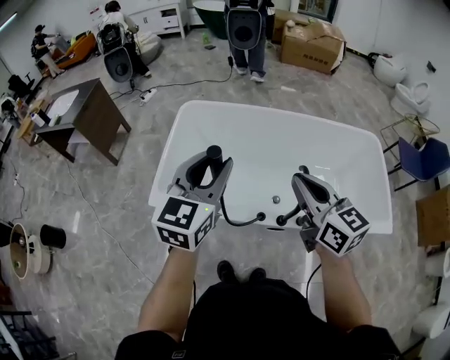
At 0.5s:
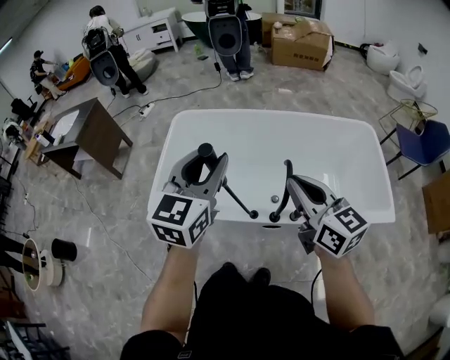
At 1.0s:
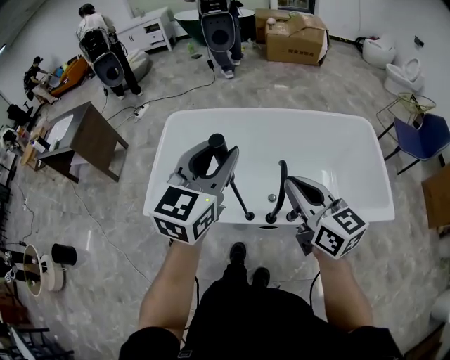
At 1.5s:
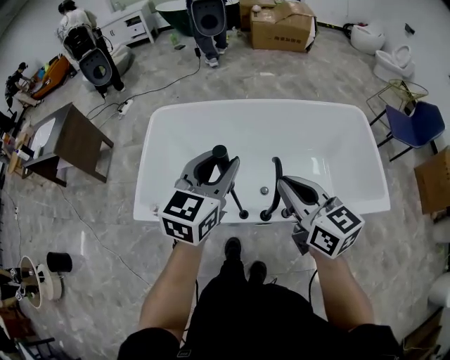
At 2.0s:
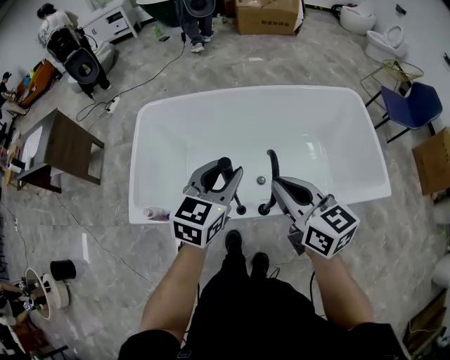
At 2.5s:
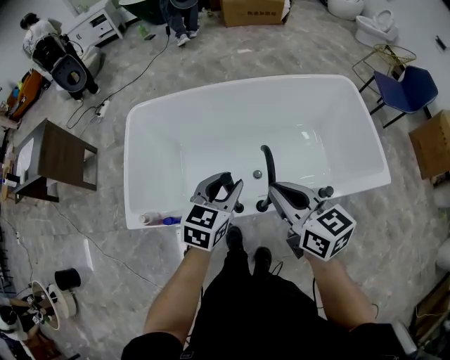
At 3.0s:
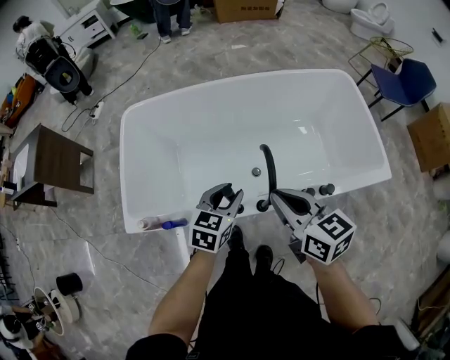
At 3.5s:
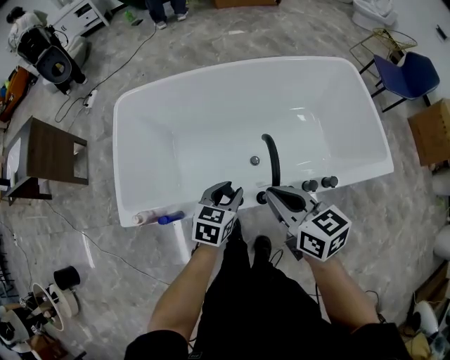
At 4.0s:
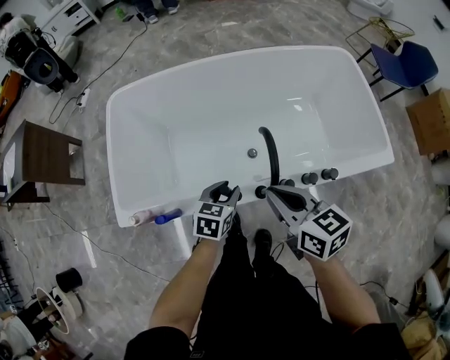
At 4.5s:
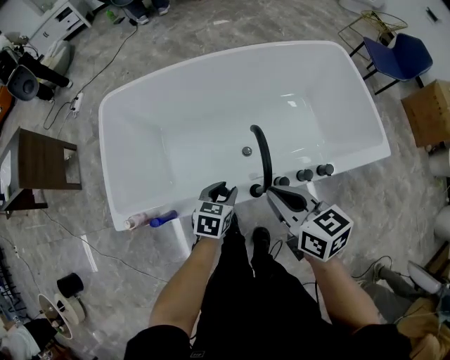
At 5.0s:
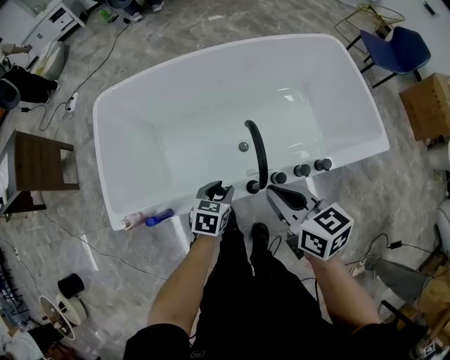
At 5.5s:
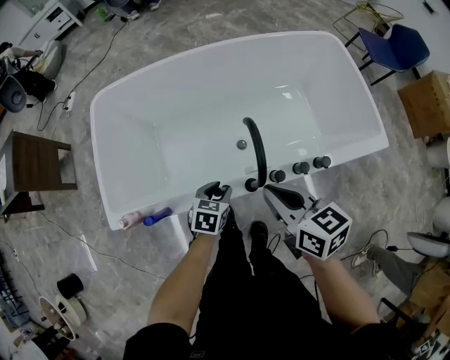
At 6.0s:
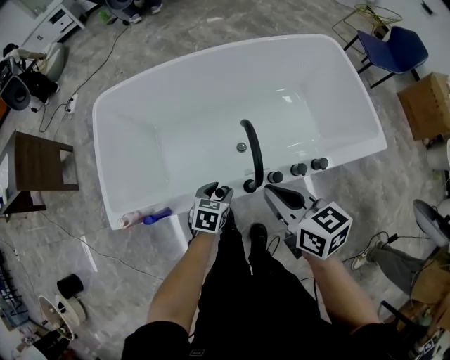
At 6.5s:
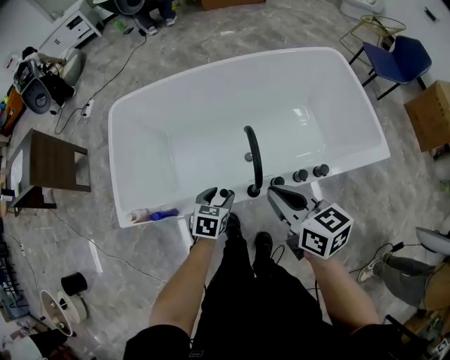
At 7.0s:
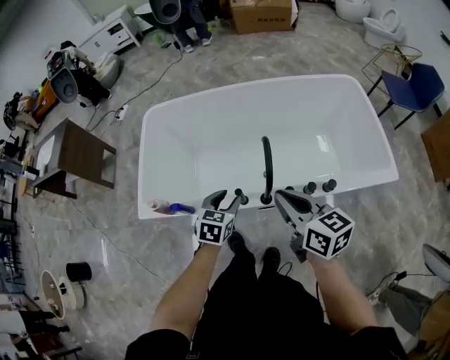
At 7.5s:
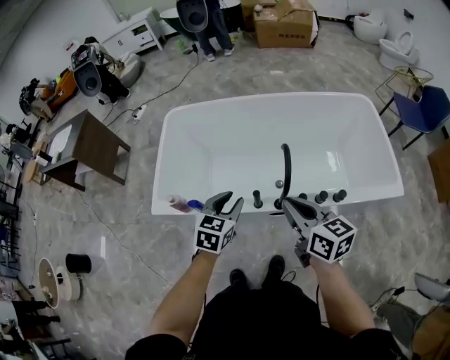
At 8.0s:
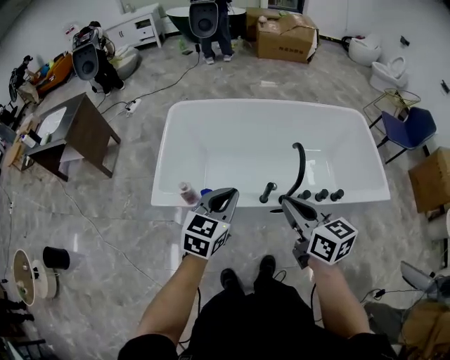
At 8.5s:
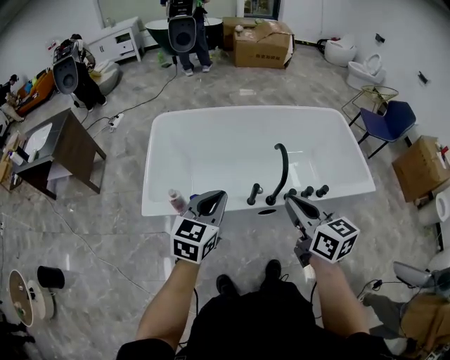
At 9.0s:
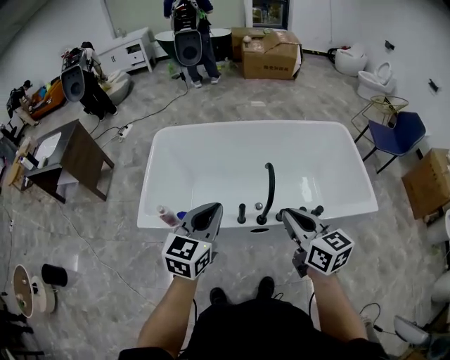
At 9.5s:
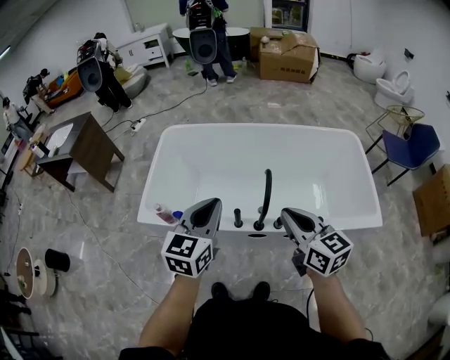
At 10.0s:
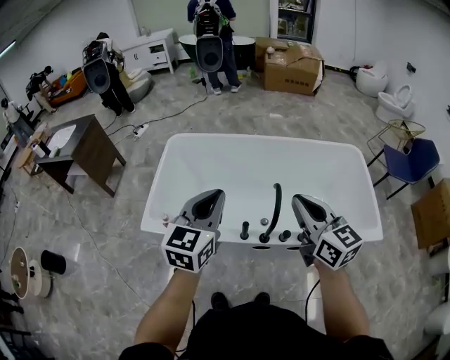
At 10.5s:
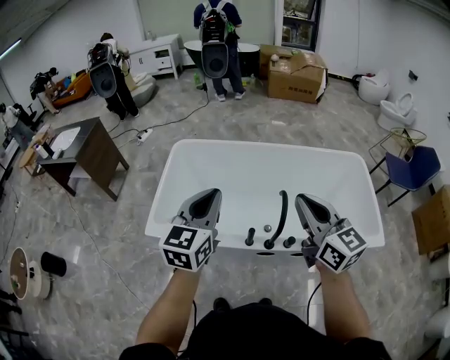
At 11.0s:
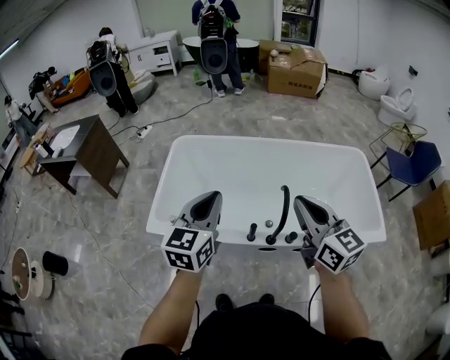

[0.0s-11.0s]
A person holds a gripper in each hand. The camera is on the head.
0.0s to 2.0s: The left gripper heads to the right and downward, covering some 20 cm, and rotates roughly 20 degrees. Meanwhile the right gripper travels to the right and downward by approximately 10 cm.
2.0s to 3.5s: The right gripper travels downward by about 10 cm; the left gripper travels downward by approximately 20 cm, and turns by approximately 20 degrees.
3.5s to 5.5s: The left gripper is displaced downward by roughly 10 cm.
5.5s to 7.5s: The right gripper moves upward and backward, about 10 cm; the left gripper travels upward by roughly 20 cm, swivels some 20 degrees, and opens, then closes once more.
7.5s to 9.0s: The right gripper travels upward by approximately 5 cm, and goes to the left and returns, about 10 cm each way, while the left gripper moves upward, some 15 cm, and closes its fingers.
9.0s to 11.0s: Both grippers travel together forward and upward, some 10 cm.

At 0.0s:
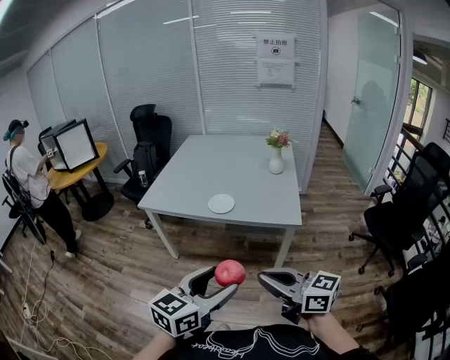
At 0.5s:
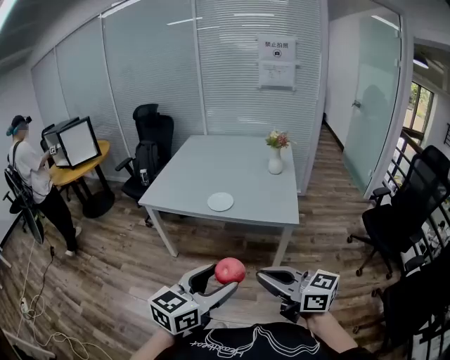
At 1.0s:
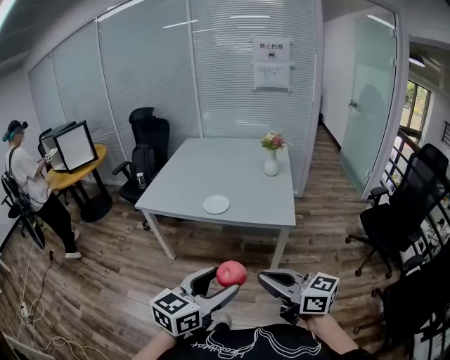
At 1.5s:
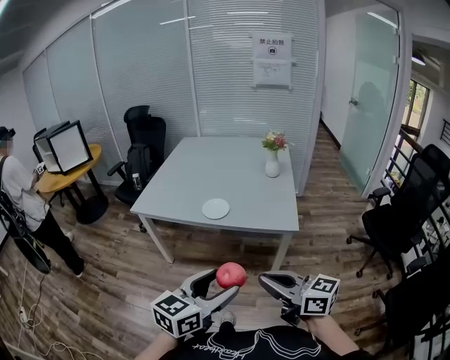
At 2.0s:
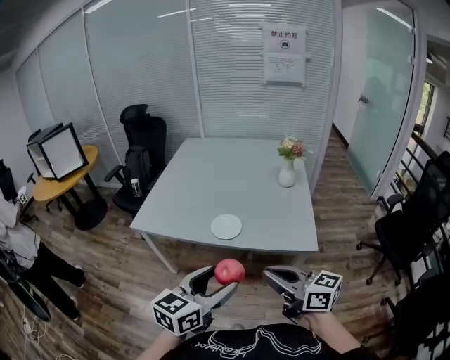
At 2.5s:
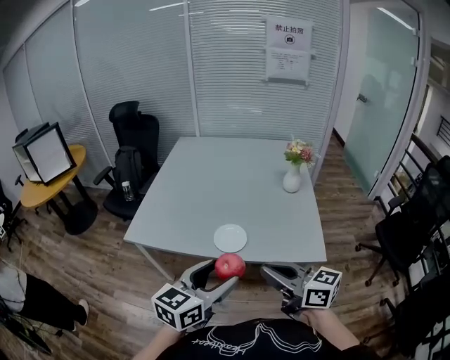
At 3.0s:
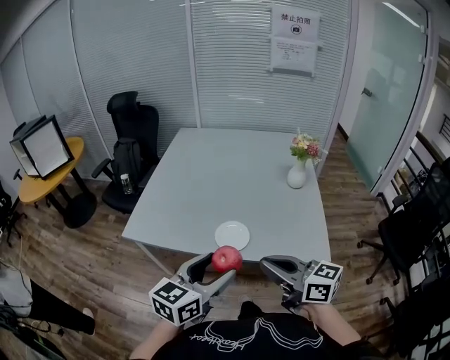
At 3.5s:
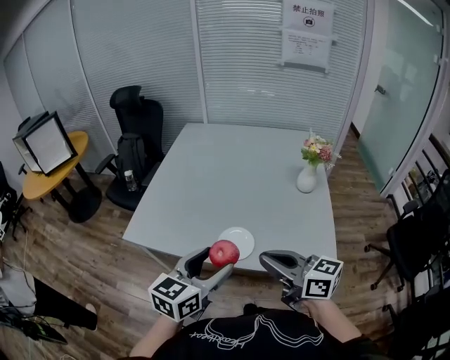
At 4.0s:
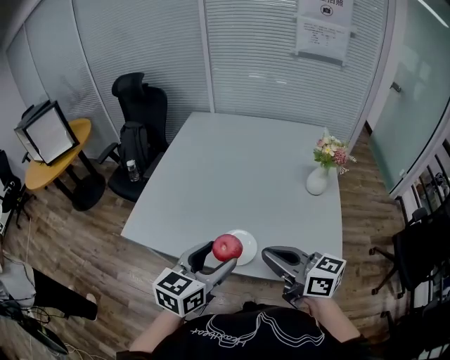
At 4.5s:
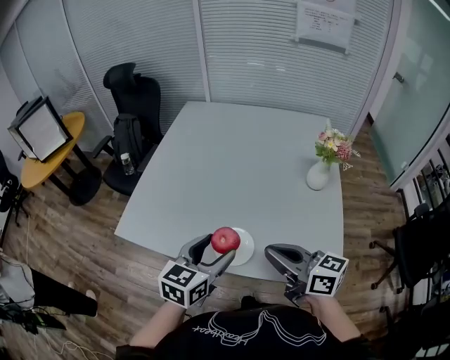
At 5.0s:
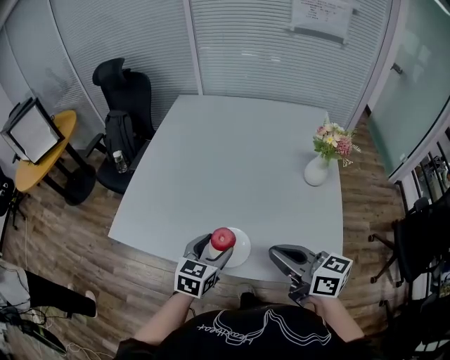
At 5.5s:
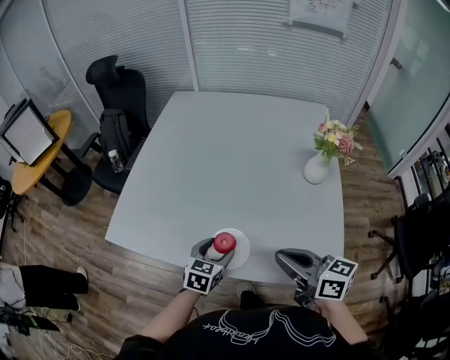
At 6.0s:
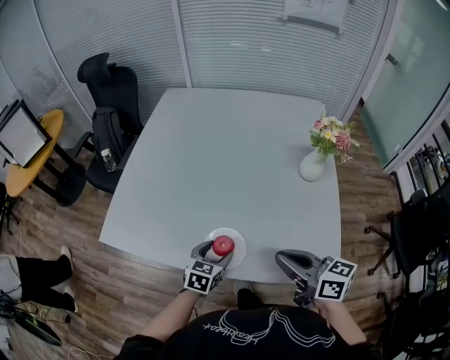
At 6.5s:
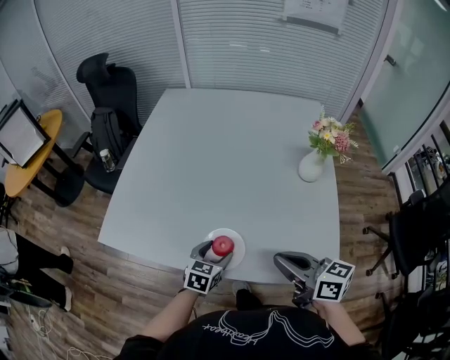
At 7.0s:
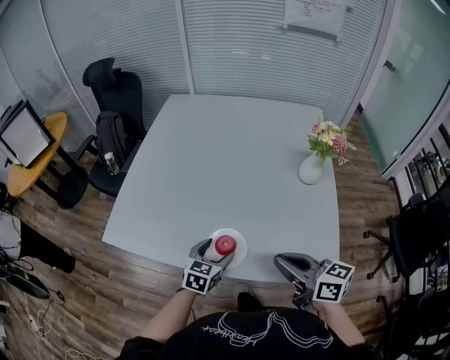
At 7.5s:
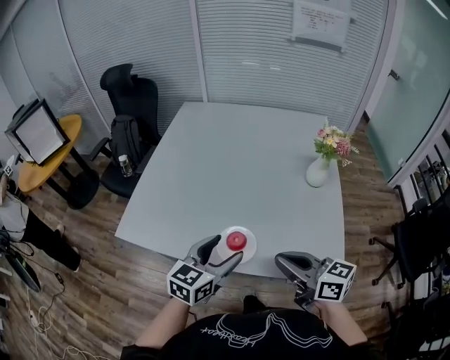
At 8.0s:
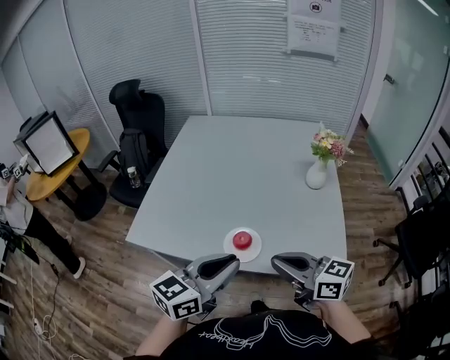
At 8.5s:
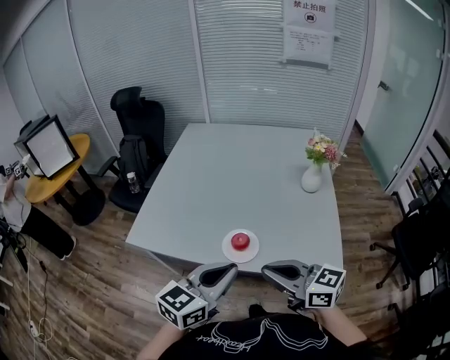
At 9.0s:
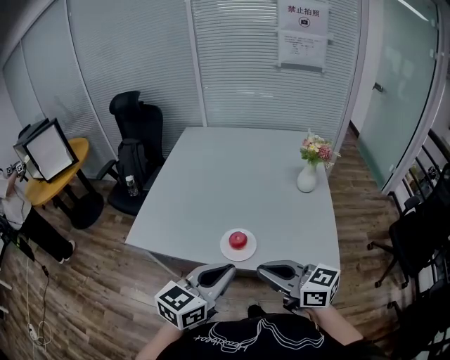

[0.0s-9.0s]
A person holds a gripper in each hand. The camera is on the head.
0.0s to 2.0s: Both grippers travel together forward, roughly 20 cm.
2.0s to 4.5s: The grippers both shift forward by some 35 cm.
4.5s to 7.0s: The left gripper goes about 20 cm downward. The right gripper shifts by approximately 5 cm.
7.0s to 9.0s: The right gripper goes roughly 15 cm backward, to the left and upward. The left gripper travels upward and backward by some 30 cm, changes its angle by about 30 degrees, and closes its fingers.

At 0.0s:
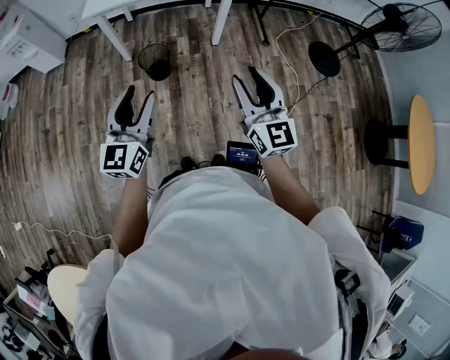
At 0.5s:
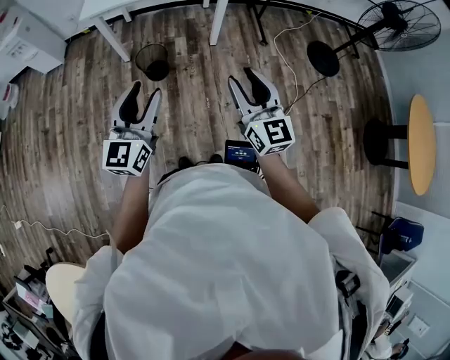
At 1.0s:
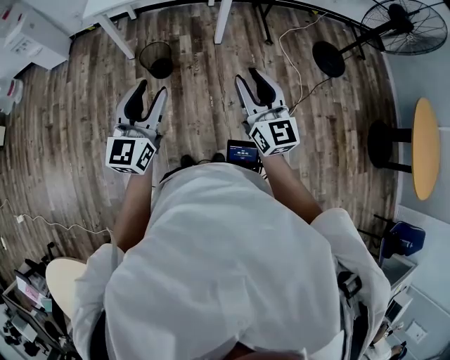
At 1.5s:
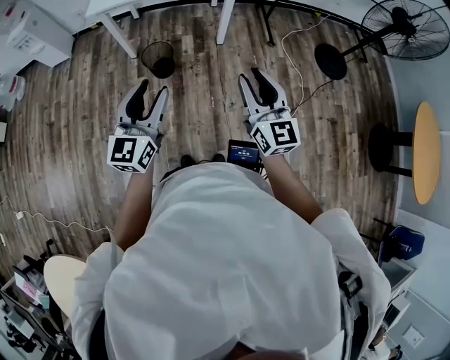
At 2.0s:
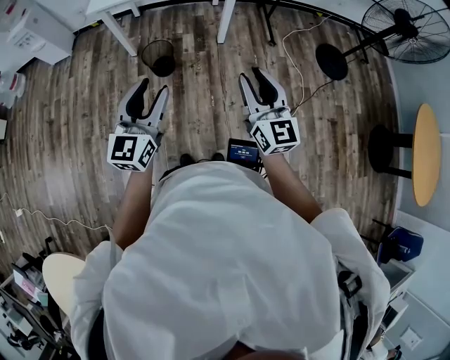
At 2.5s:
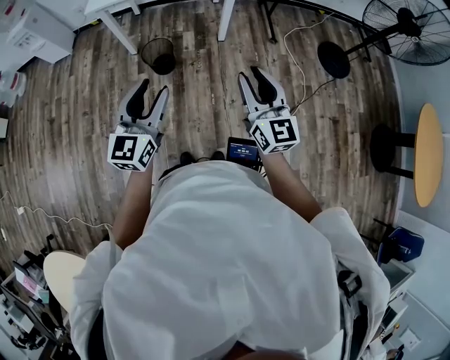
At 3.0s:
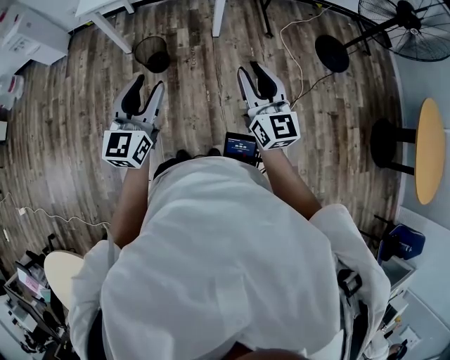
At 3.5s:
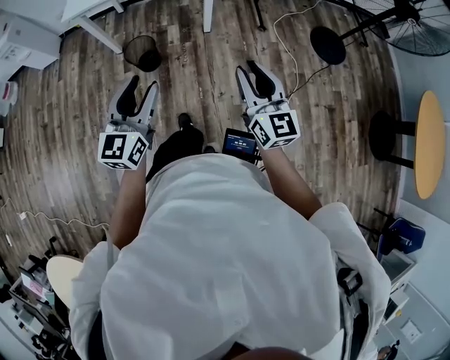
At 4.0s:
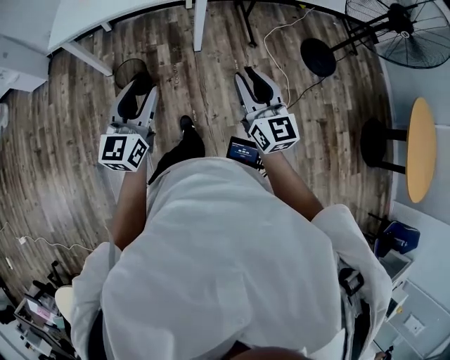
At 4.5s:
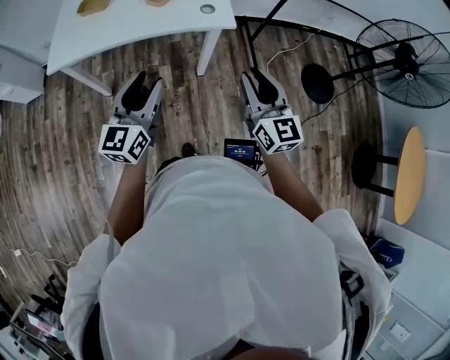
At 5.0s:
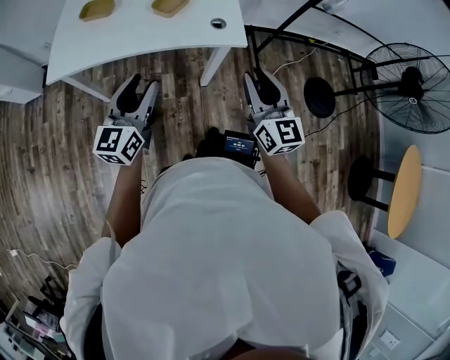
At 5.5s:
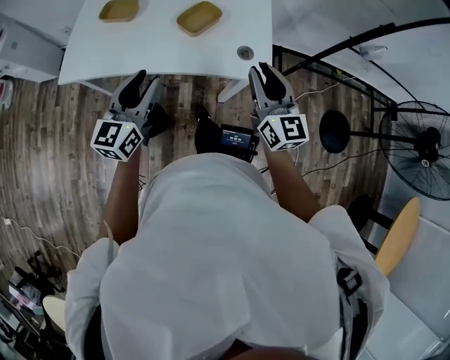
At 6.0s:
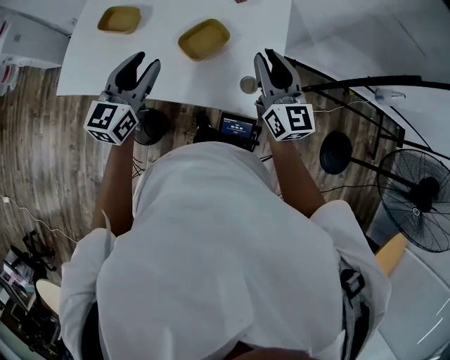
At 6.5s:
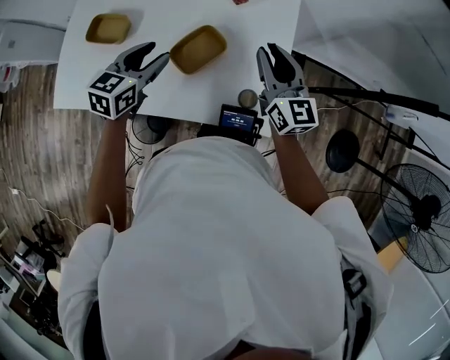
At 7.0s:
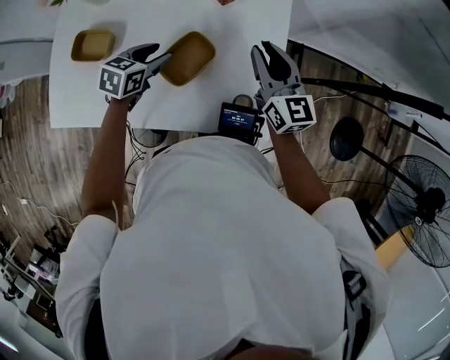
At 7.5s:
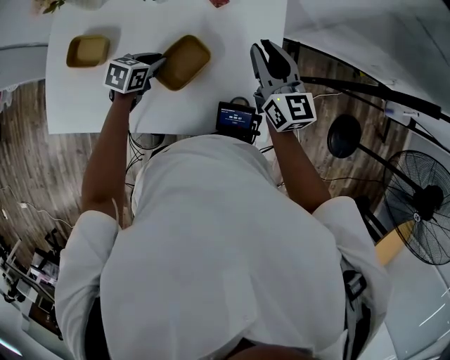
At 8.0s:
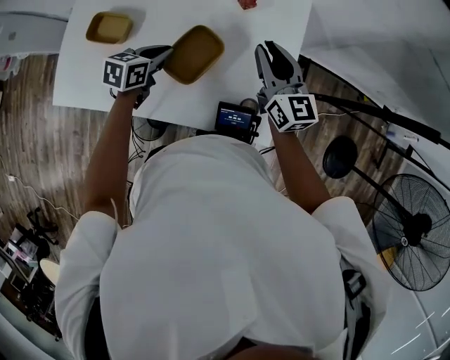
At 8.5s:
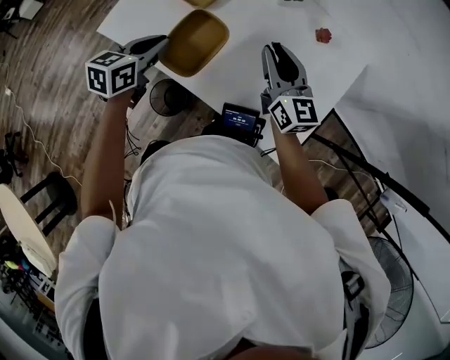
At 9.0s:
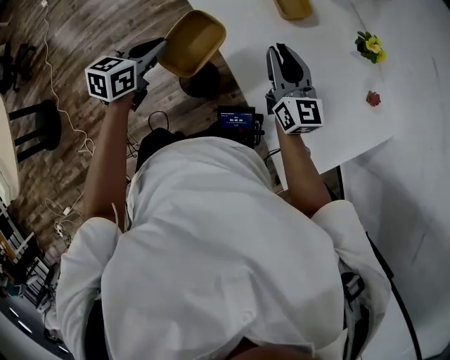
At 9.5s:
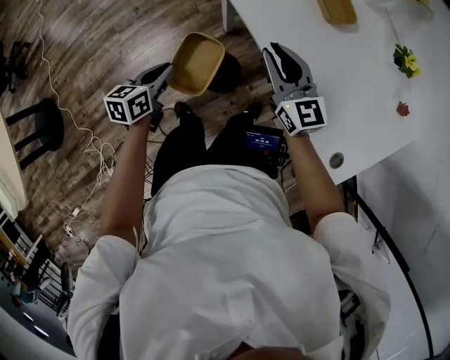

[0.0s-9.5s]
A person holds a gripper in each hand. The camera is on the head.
0.0s to 2.0s: The right gripper ends up some 5 cm from where it was, while the left gripper travels to the right by about 5 cm.
2.0s to 4.0s: The grippers both shift forward and to the right by approximately 20 cm.
4.0s to 5.5s: The pair of grippers is taken forward, roughly 50 cm.
5.5s to 7.5s: The right gripper heads forward, covering about 35 cm; the left gripper shifts about 40 cm forward and downward, tilts its fingers about 40 degrees downward, and closes up.
7.5s to 9.5s: Both grippers are carried some 50 cm. The right gripper rotates approximately 60 degrees. The left gripper rotates roughly 70 degrees.
